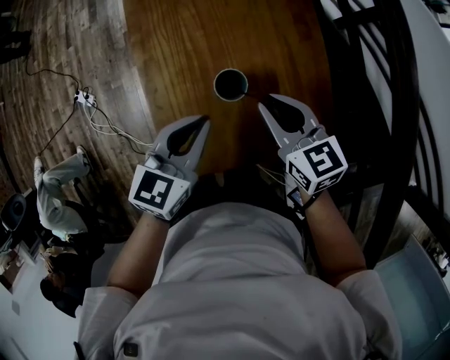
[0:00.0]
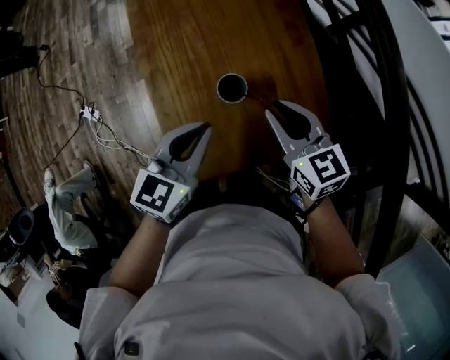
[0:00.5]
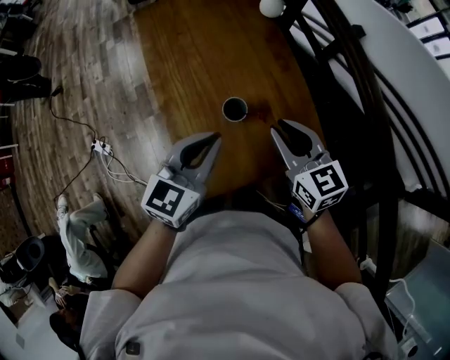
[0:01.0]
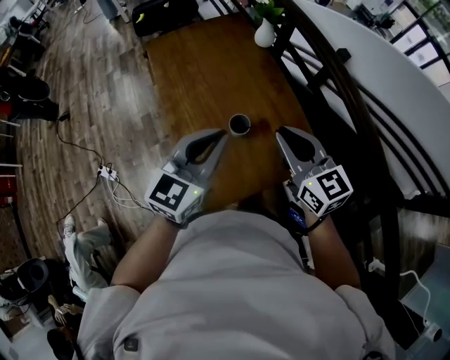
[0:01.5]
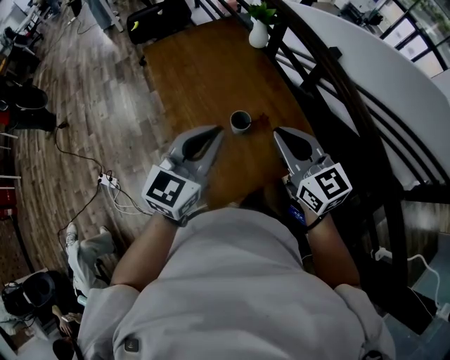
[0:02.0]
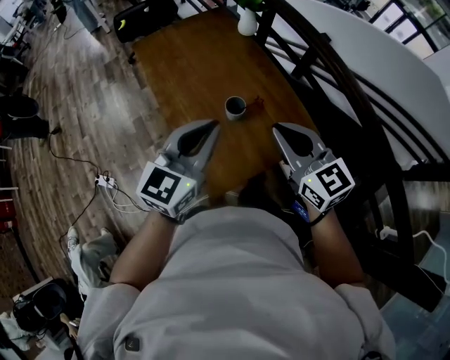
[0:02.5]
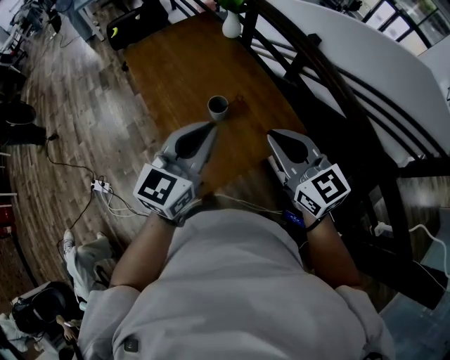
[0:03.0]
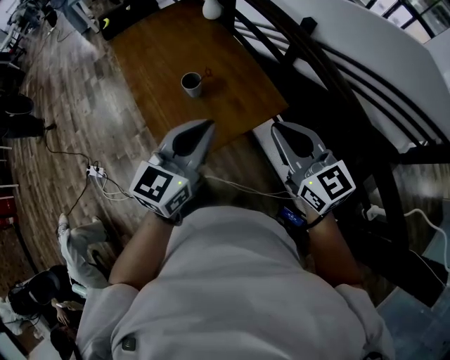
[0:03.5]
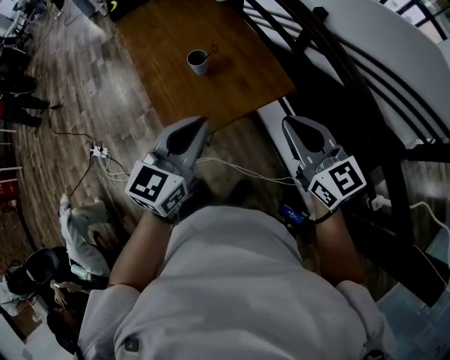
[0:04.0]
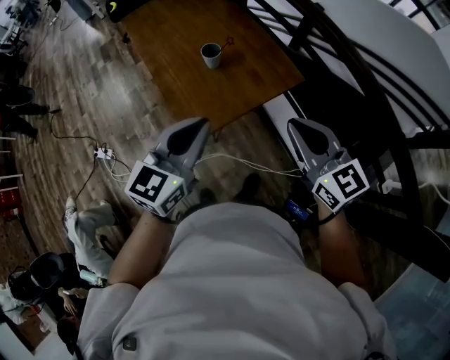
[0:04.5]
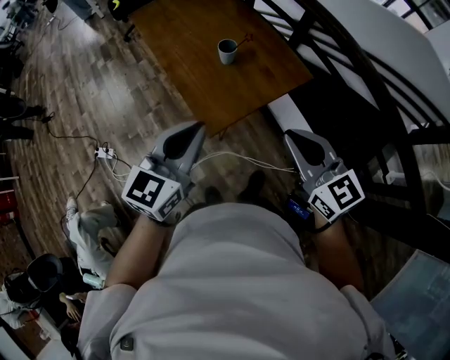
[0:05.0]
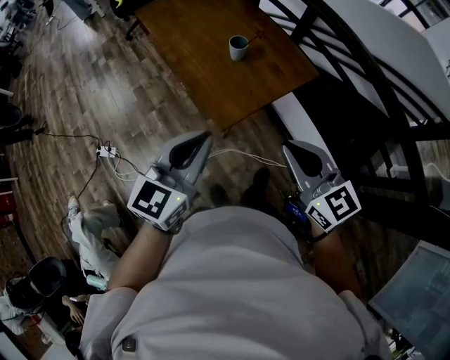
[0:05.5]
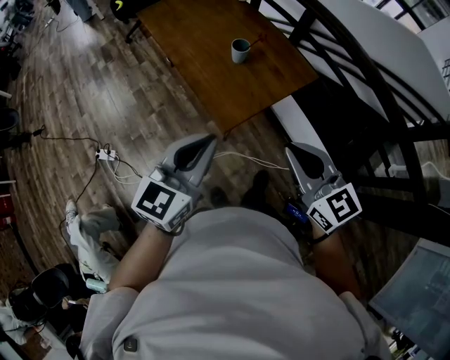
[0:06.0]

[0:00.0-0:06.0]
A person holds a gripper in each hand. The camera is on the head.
0:00.0 to 0:02.0: The left gripper travels upward by approximately 20 cm, and changes its angle by about 30 degrees. Meanwhile the right gripper is displaced upward and backward by about 20 cm, and turns by about 30 degrees.
0:02.0 to 0:04.0: The grippers both shift backward and to the right by roughly 20 cm.
0:04.0 to 0:06.0: Both grippers travel together to the left and backward, approximately 25 cm.

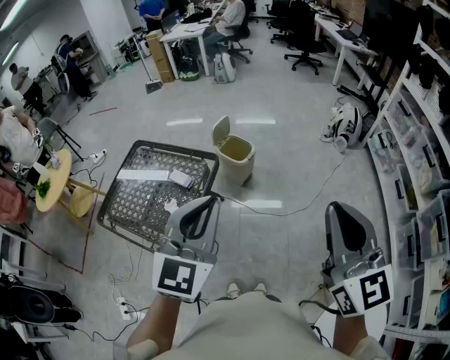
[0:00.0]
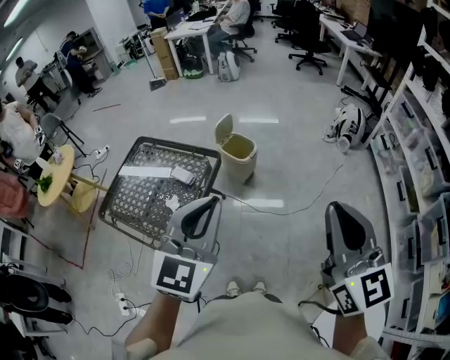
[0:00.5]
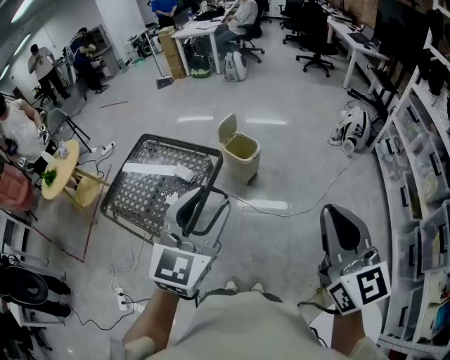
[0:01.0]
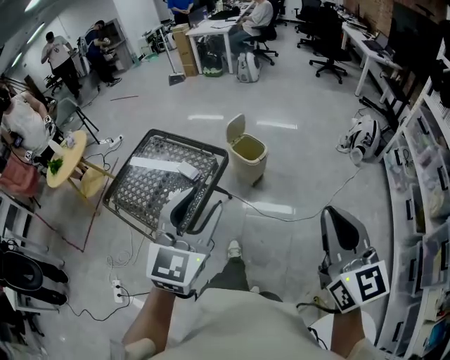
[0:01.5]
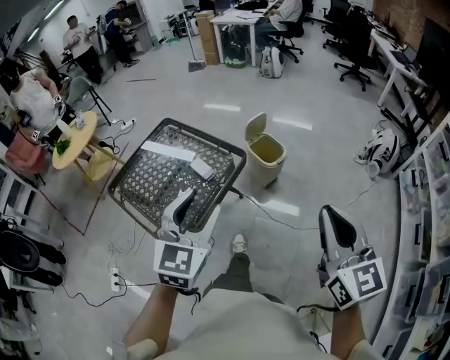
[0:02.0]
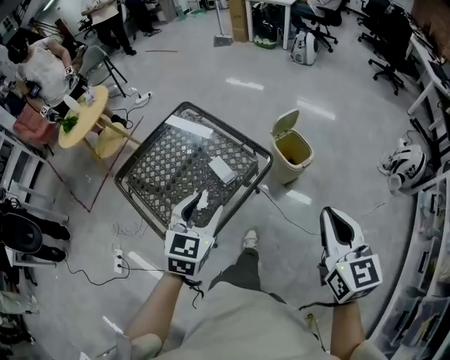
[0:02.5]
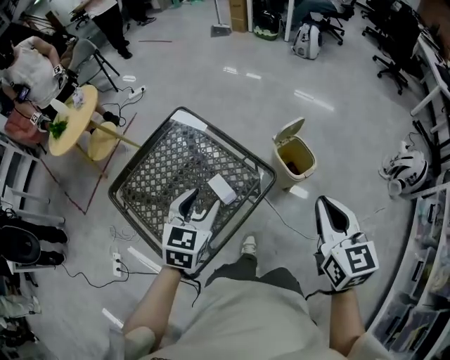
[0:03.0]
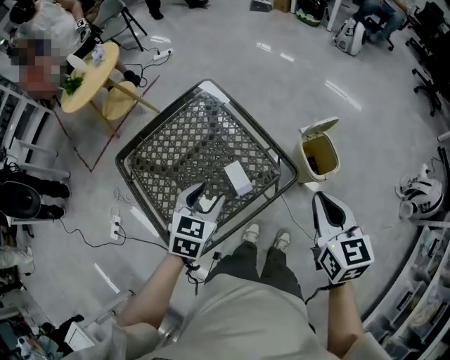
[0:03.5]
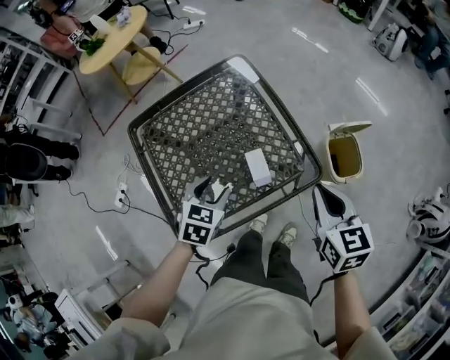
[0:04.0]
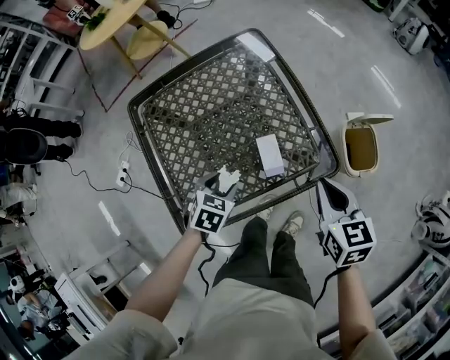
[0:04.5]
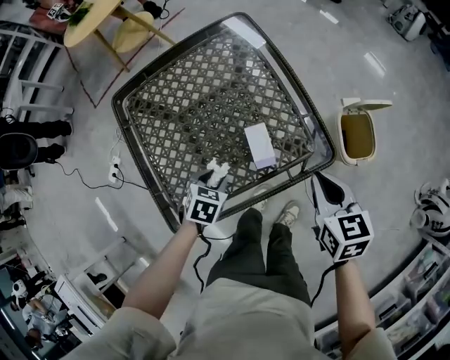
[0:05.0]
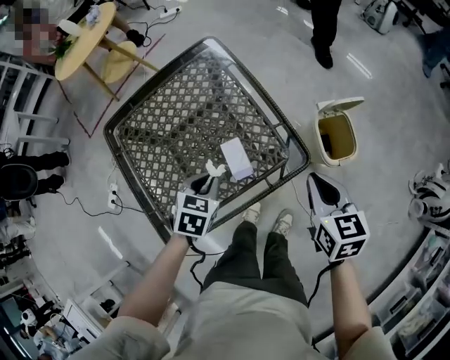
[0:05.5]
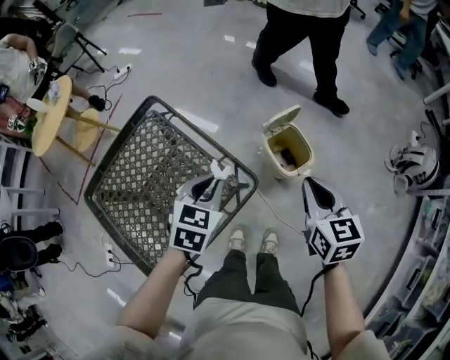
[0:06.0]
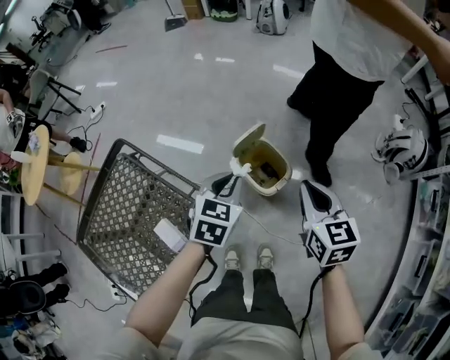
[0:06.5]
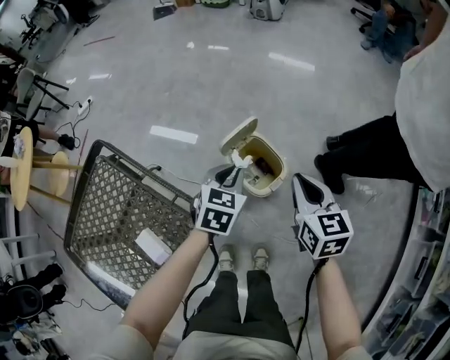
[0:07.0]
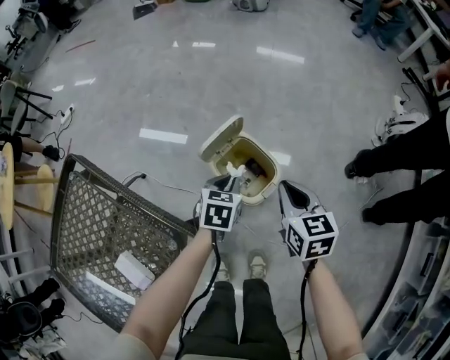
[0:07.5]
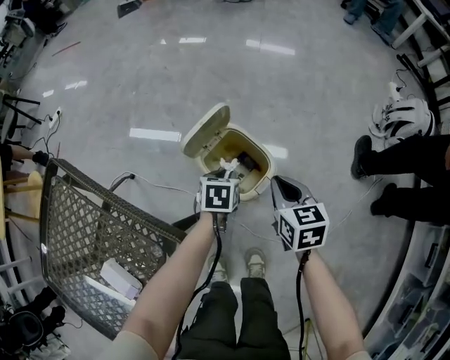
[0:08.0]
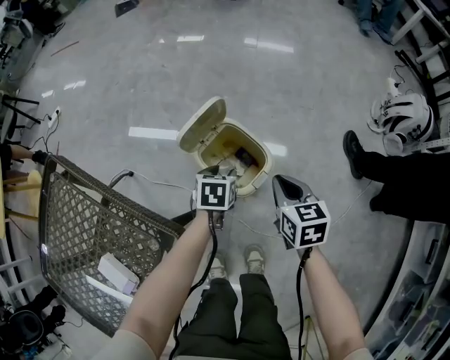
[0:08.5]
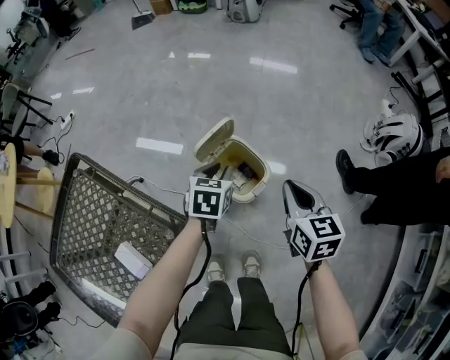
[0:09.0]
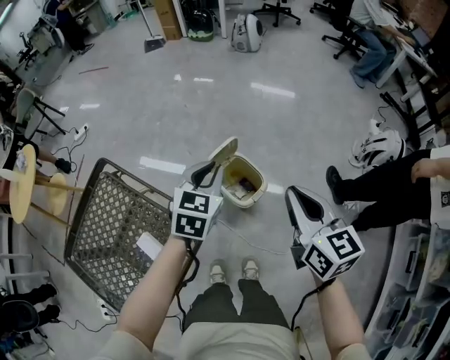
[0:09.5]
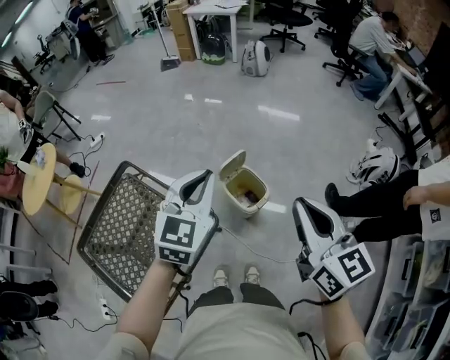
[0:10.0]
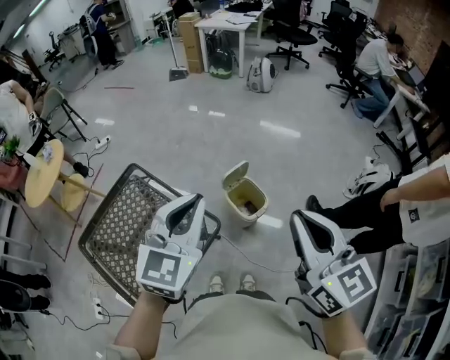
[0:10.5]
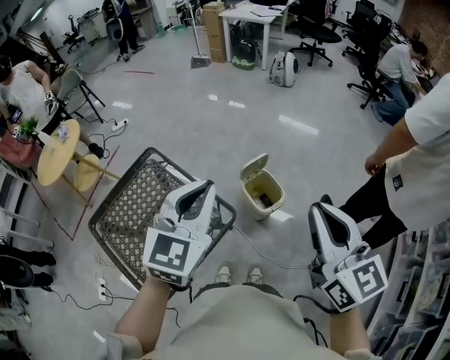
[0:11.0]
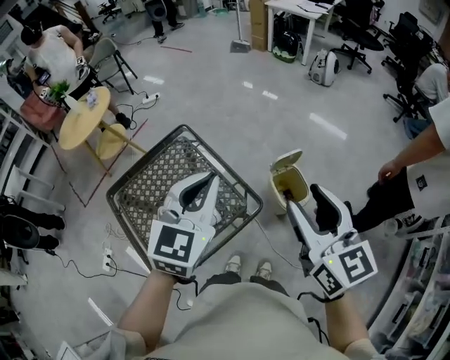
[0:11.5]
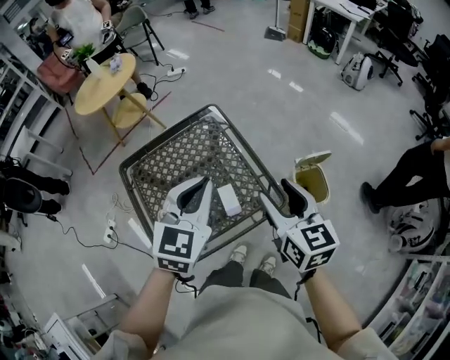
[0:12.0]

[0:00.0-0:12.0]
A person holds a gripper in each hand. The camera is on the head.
0:00.0 to 0:02.0: The left gripper goes roughly 10 cm downward, to the left and forward, turns by about 20 degrees, and opens its fingers; the right gripper goes approximately 15 cm forward and downward.
0:02.0 to 0:04.0: The left gripper moves downward, about 30 cm, and tilts its fingers roughly 40 degrees downward; the right gripper changes place by about 50 cm, and changes its angle by about 40 degrees.
0:04.0 to 0:06.0: Both grippers move to the right, some 20 cm. The left gripper turns by some 20 degrees, and closes up, while the right gripper rotates some 20 degrees.
0:06.0 to 0:08.0: Both grippers travel together downward, to the right and forward, roughly 40 cm. The left gripper changes its angle by approximately 20 degrees.
0:08.0 to 0:10.0: Both grippers move upward, about 60 cm. The left gripper tilts its fingers approximately 40 degrees upward, and opens, then closes once more. Meanwhile the right gripper tilts its fingers about 30 degrees upward.
0:10.0 to 0:12.0: The left gripper moves about 10 cm upward and comes back, and rotates about 30 degrees; the right gripper changes place by roughly 30 cm, rotates roughly 30 degrees, and opens its fingers.

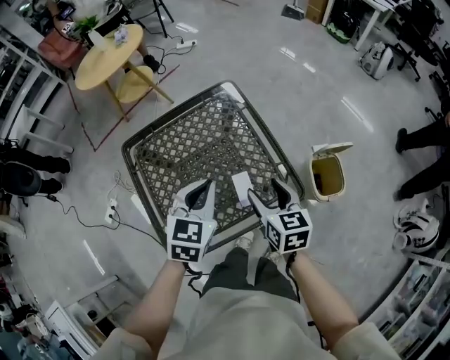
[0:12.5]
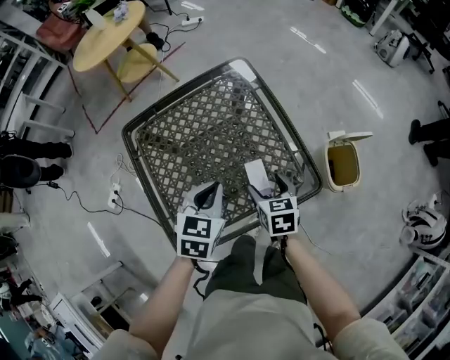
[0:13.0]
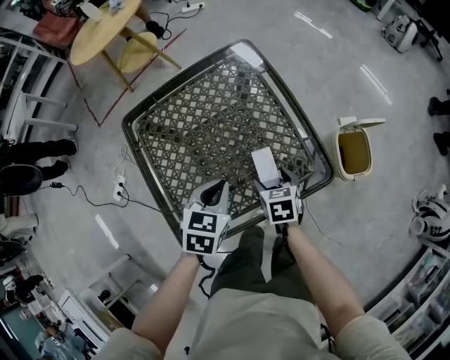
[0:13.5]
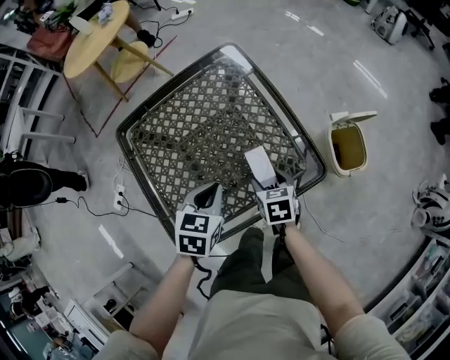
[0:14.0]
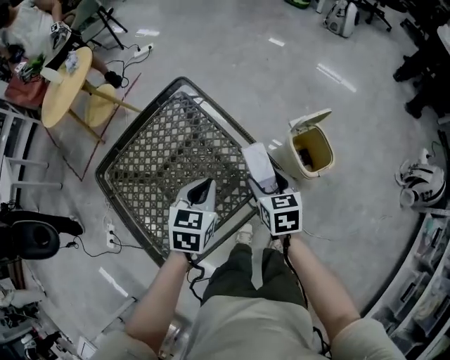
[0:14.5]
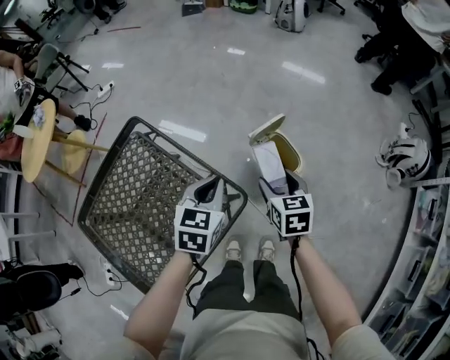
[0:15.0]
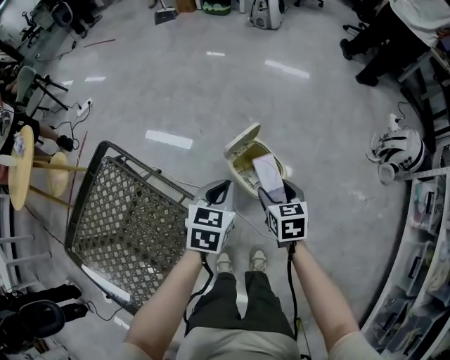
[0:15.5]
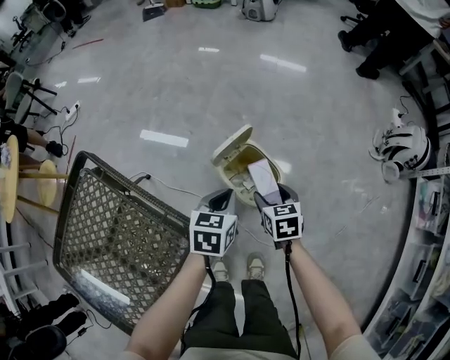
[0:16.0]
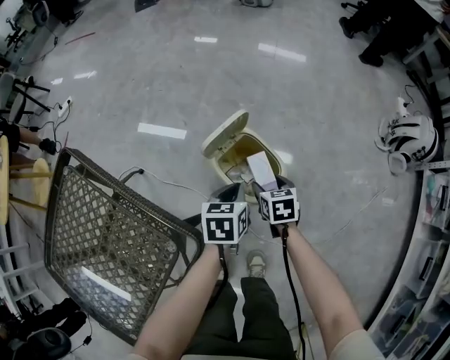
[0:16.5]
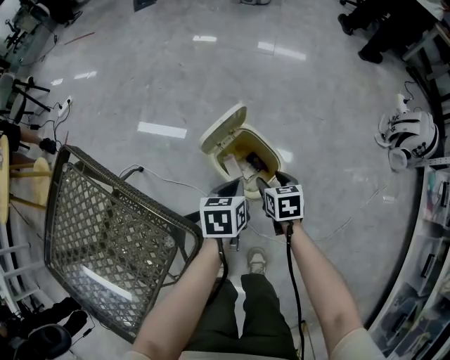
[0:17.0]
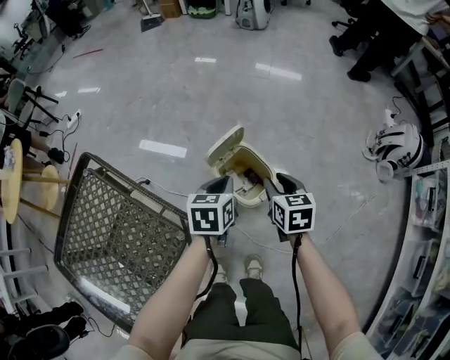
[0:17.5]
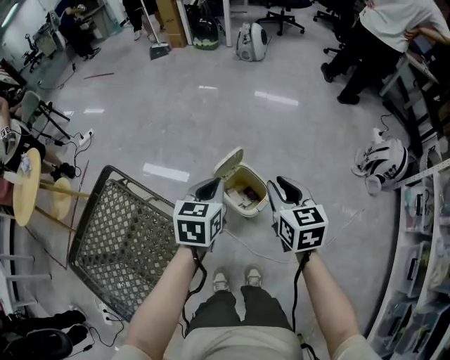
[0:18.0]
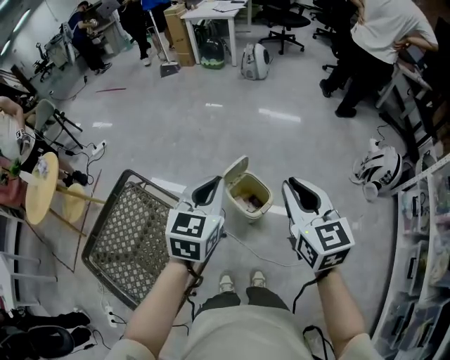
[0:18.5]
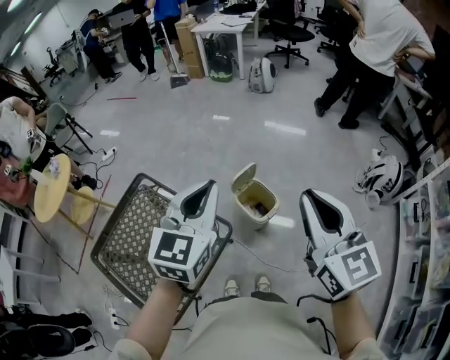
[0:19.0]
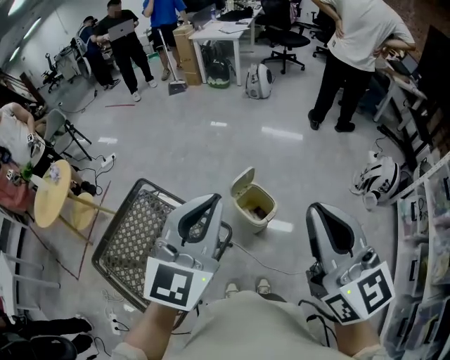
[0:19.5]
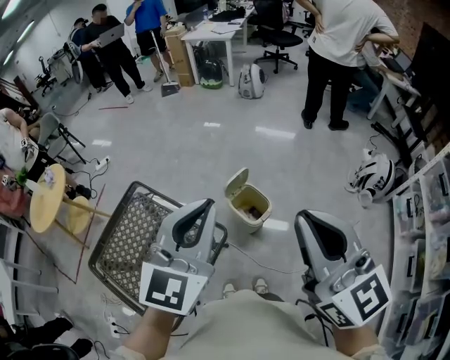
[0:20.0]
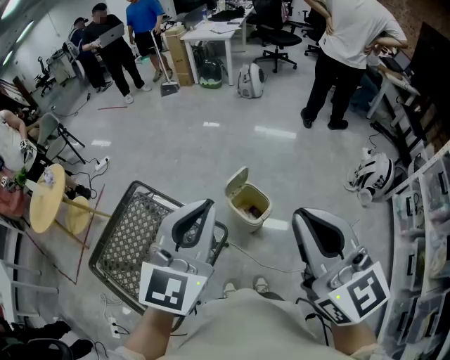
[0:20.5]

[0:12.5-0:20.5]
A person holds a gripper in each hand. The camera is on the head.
0:12.5 to 0:14.5: The two grippers go roughly 10 cm downward and to the right.
0:14.5 to 0:16.5: The right gripper travels downward, to the right and forward by roughly 40 cm, and rotates some 20 degrees. The left gripper travels to the right, downward and forward by roughly 50 cm, and rotates roughly 20 degrees.
0:16.5 to 0:18.5: The grippers both shift upward by roughly 50 cm. The right gripper tips its fingers upward by about 40 degrees, and closes. The left gripper swivels about 40 degrees.
0:18.5 to 0:20.5: Both grippers move upward and backward, about 20 cm.
